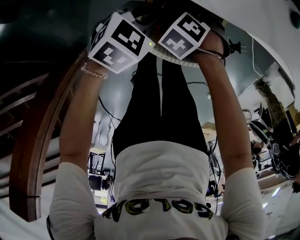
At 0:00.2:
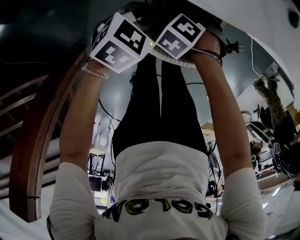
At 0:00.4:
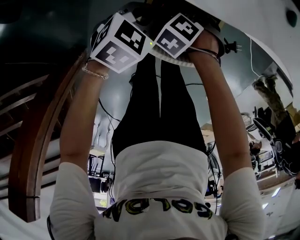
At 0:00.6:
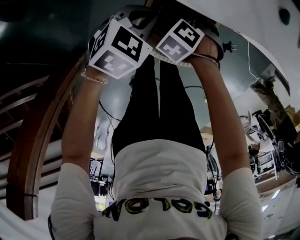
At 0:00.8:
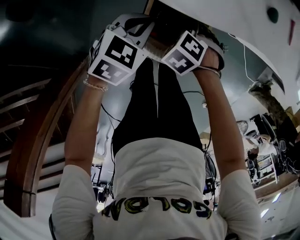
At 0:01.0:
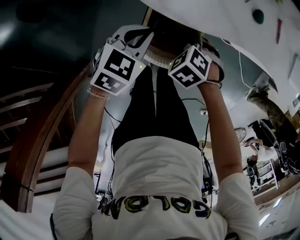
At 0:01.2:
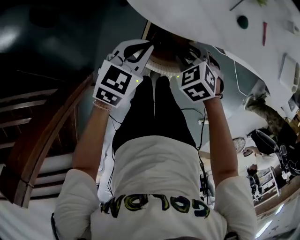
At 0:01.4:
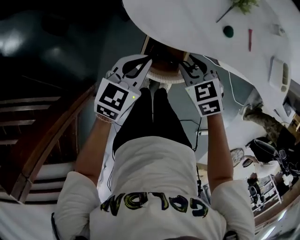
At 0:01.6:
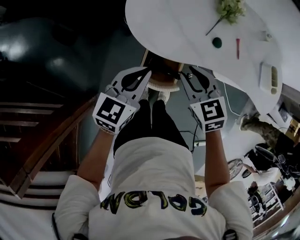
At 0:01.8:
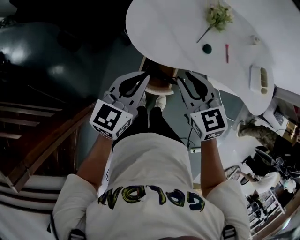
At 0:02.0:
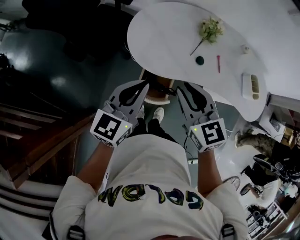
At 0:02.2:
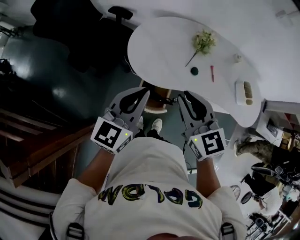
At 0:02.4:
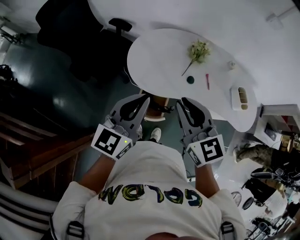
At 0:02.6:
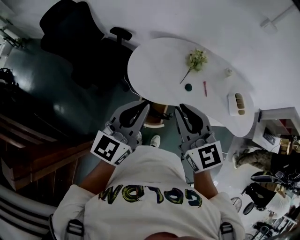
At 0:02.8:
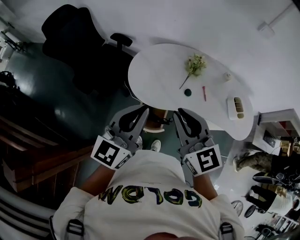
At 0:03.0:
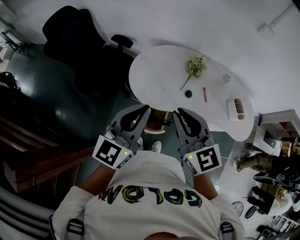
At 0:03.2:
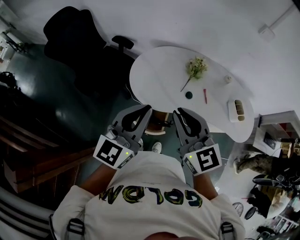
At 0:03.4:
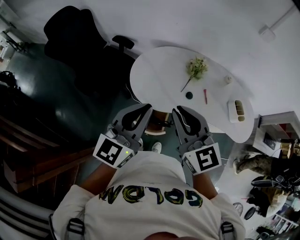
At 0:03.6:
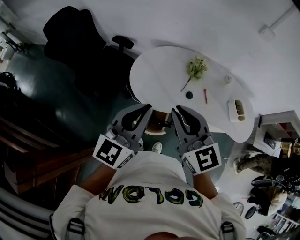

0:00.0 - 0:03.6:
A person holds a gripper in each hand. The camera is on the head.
0:00.0 - 0:01.8: Both grippers travel together upward, roughly 35 cm. The left gripper tilts its fingers approximately 30 degrees upward. The right gripper angles its fingers upward, by some 60 degrees, and closes its fingers.
0:01.8 - 0:03.6: The two grippers go roughly 20 cm upward. The right gripper changes its angle by approximately 20 degrees, while the left gripper turns by some 20 degrees.

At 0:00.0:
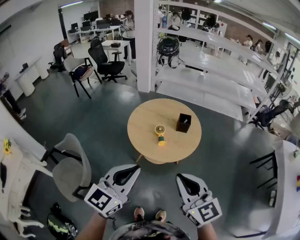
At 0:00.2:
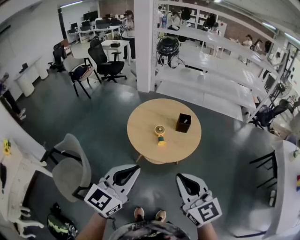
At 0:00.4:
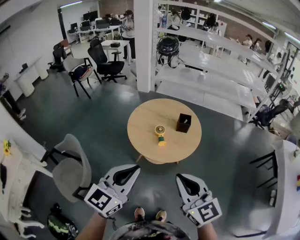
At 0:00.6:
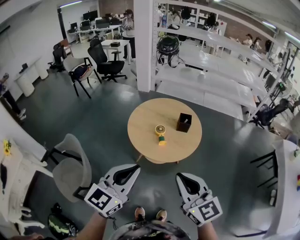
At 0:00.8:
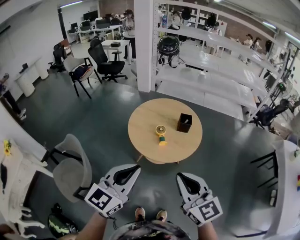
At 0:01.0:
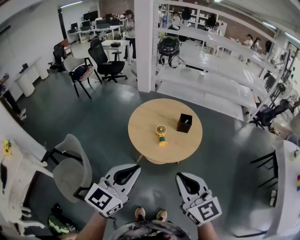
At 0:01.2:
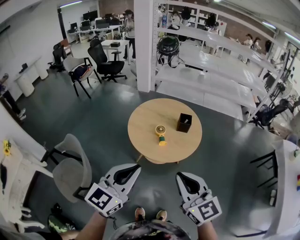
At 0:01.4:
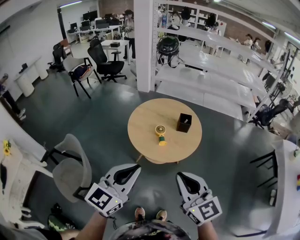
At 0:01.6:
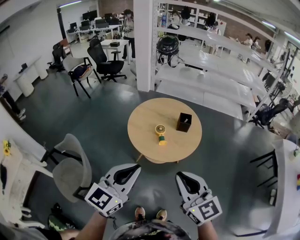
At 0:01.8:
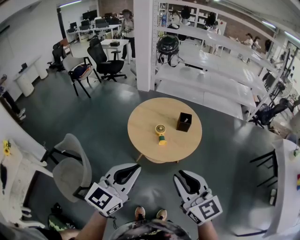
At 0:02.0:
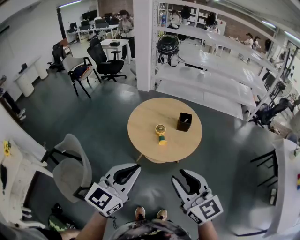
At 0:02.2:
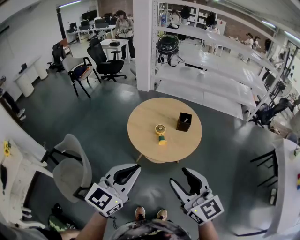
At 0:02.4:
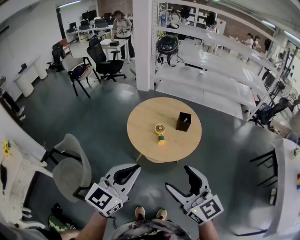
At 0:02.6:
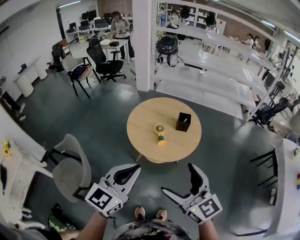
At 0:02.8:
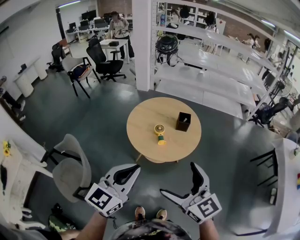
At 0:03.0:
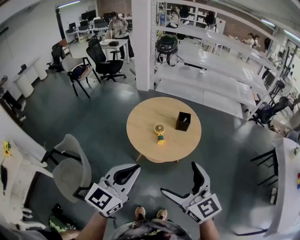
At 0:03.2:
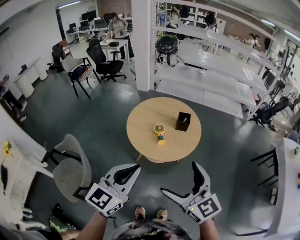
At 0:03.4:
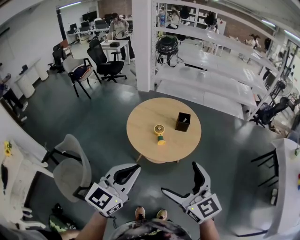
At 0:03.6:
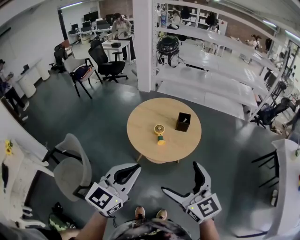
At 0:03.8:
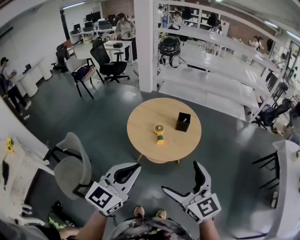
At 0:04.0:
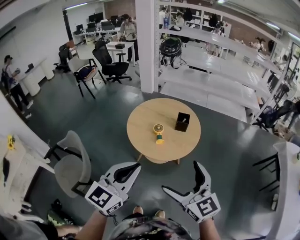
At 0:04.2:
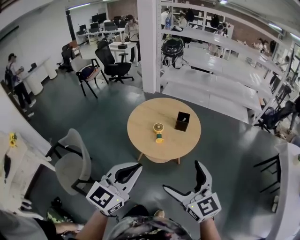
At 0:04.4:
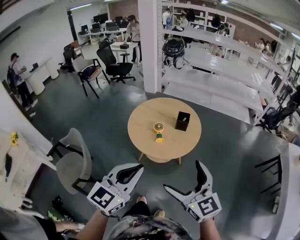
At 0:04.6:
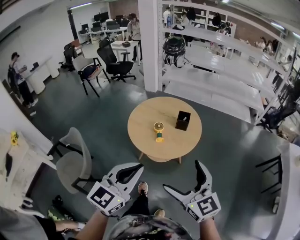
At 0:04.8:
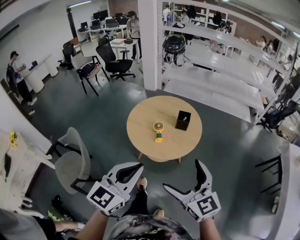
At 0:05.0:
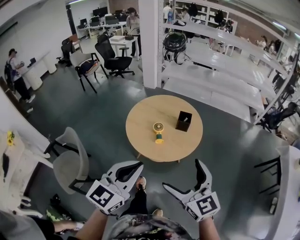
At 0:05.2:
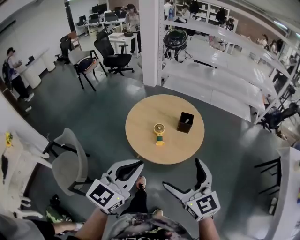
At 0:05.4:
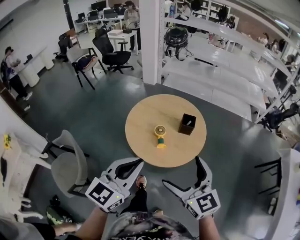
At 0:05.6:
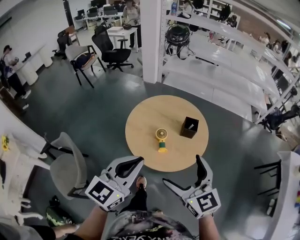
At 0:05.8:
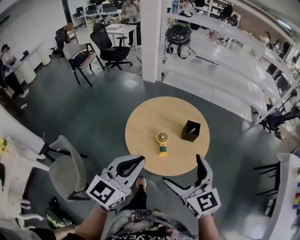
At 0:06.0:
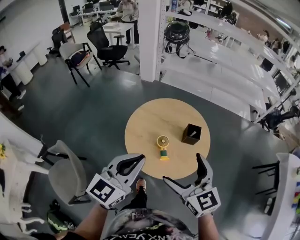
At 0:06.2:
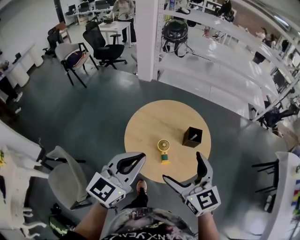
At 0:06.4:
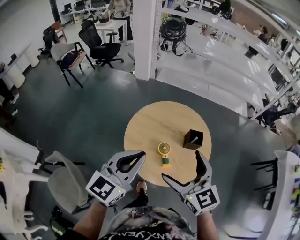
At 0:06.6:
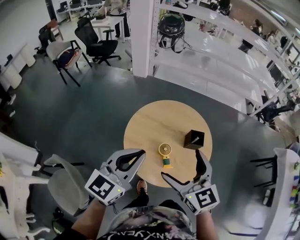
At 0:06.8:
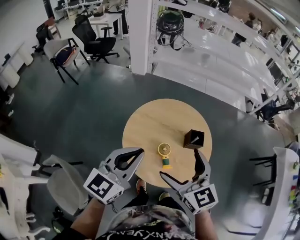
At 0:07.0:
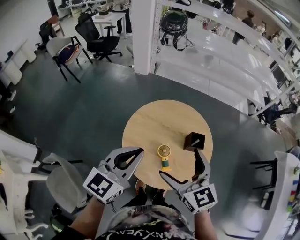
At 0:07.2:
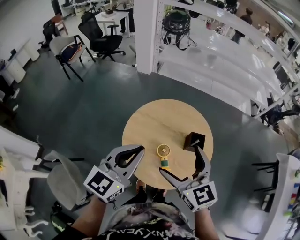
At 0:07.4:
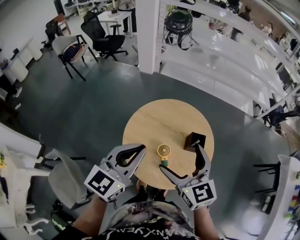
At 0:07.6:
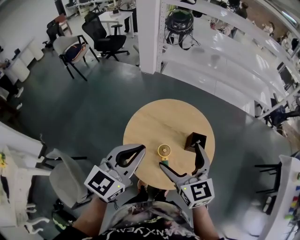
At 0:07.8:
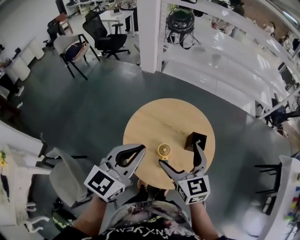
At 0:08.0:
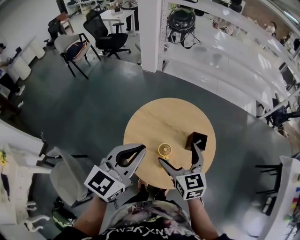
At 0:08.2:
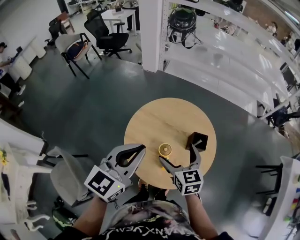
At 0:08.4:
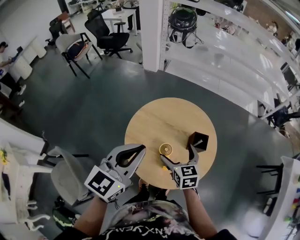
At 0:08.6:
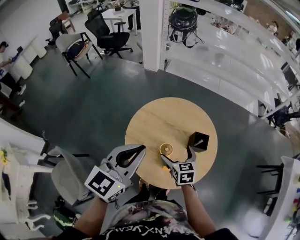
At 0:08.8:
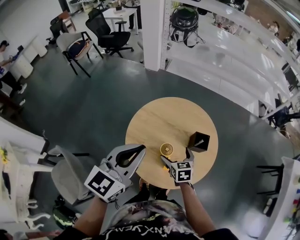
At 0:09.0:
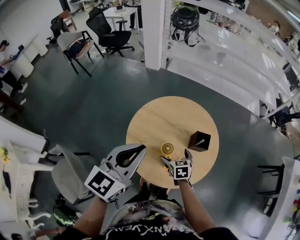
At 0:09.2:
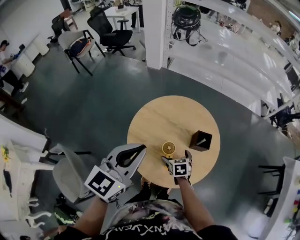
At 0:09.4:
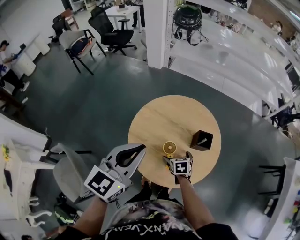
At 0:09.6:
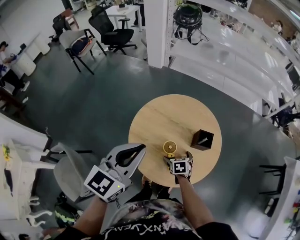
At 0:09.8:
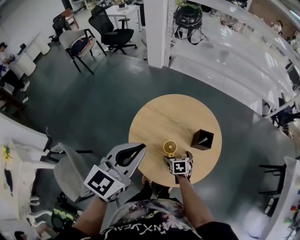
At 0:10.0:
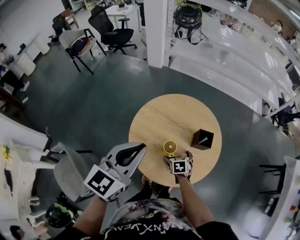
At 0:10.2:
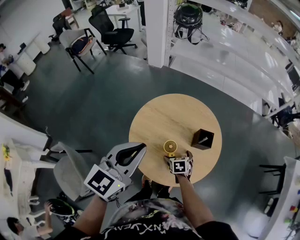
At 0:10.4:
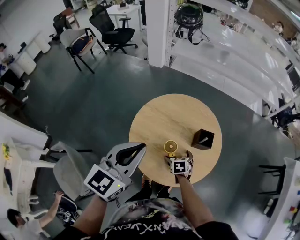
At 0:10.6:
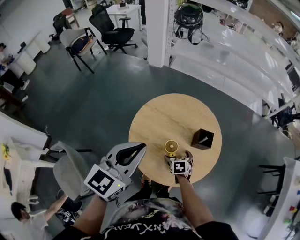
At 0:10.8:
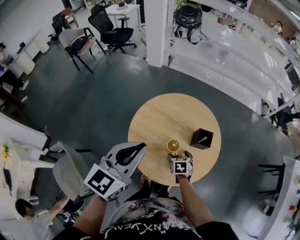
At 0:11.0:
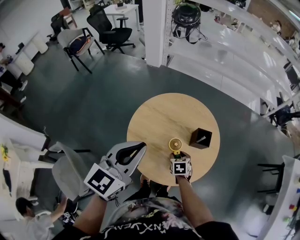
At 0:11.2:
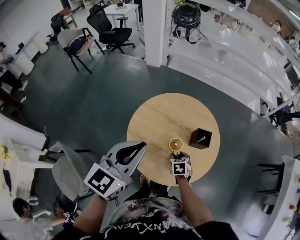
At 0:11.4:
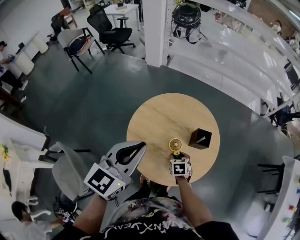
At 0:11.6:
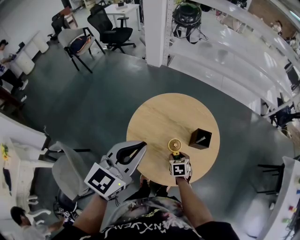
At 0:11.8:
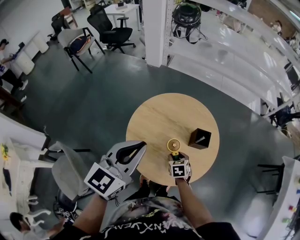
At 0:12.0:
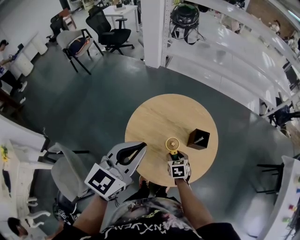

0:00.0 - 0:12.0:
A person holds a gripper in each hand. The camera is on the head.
0:00.0 - 0:01.6: Both grippers stay put.
0:01.6 - 0:03.0: The right gripper opens.
0:03.0 - 0:04.4: The grippers both shift to the right by about 10 cm.
0:04.4 - 0:06.0: Both grippers travel together forward, about 25 cm.
0:06.0 - 0:07.6: The grippers both shift forward by roughly 15 cm.
0:07.6 - 0:09.0: The right gripper heads downward, covering about 30 cm, and tips its fingers downward by some 30 degrees.
0:09.0 - 0:10.4: The right gripper moves downward, about 5 cm.
0:10.4 - 0:12.0: The right gripper closes its fingers.

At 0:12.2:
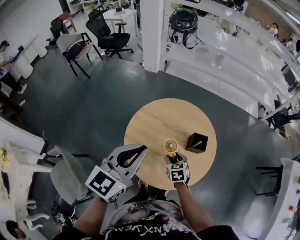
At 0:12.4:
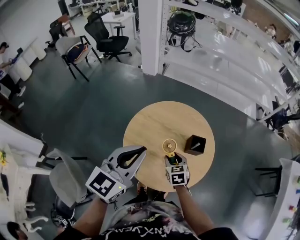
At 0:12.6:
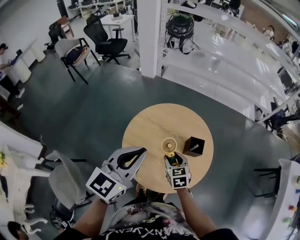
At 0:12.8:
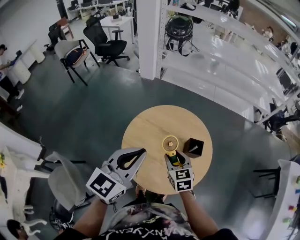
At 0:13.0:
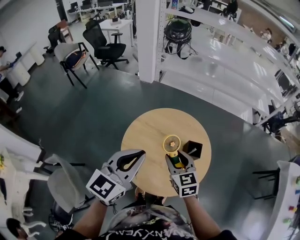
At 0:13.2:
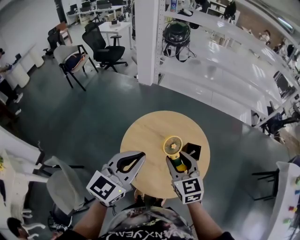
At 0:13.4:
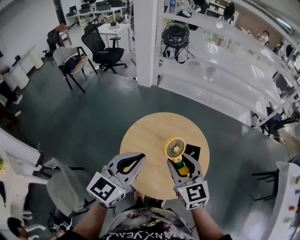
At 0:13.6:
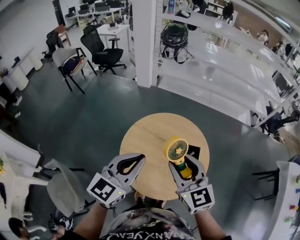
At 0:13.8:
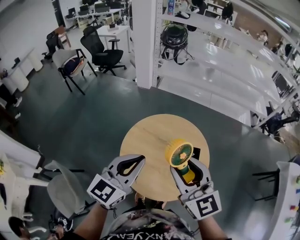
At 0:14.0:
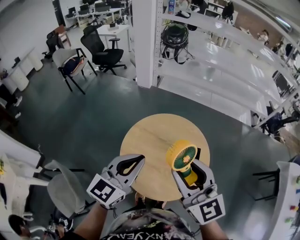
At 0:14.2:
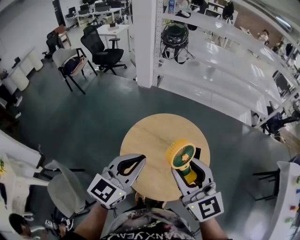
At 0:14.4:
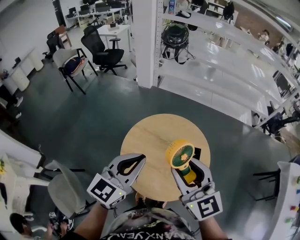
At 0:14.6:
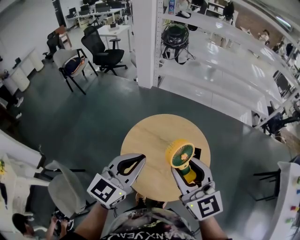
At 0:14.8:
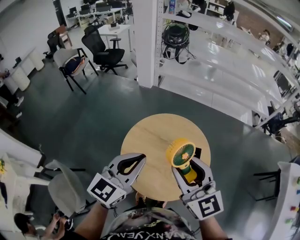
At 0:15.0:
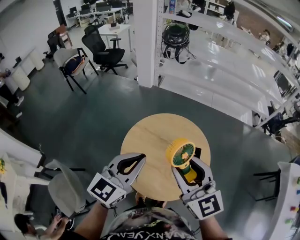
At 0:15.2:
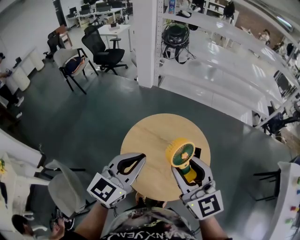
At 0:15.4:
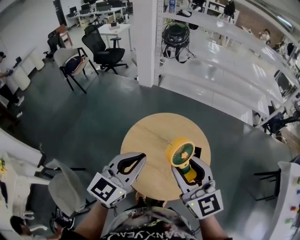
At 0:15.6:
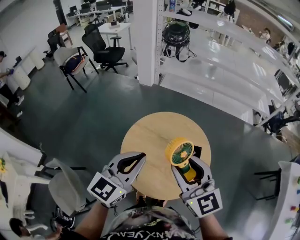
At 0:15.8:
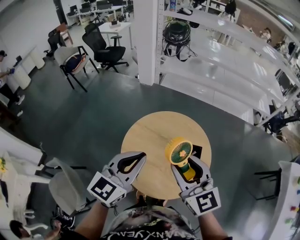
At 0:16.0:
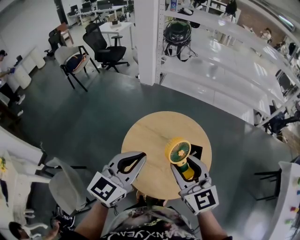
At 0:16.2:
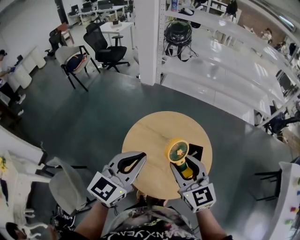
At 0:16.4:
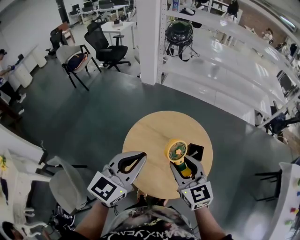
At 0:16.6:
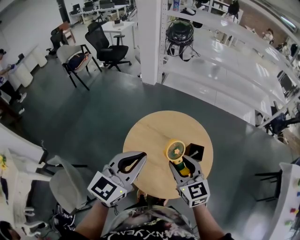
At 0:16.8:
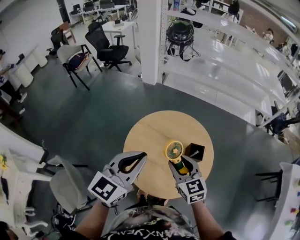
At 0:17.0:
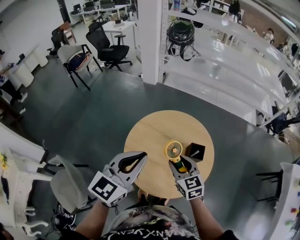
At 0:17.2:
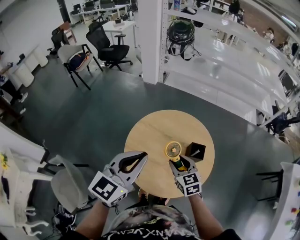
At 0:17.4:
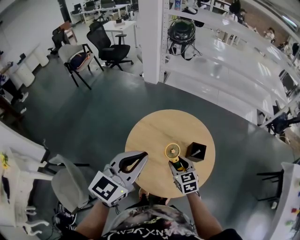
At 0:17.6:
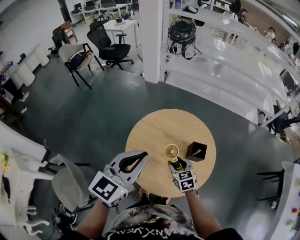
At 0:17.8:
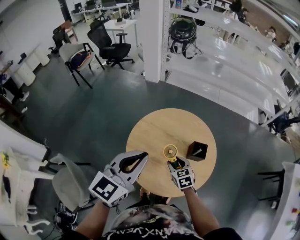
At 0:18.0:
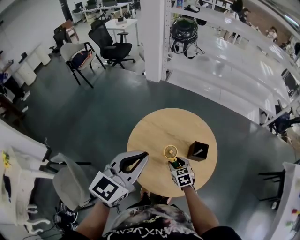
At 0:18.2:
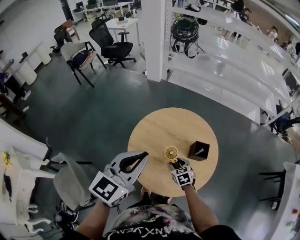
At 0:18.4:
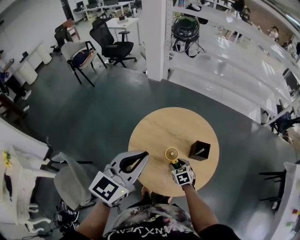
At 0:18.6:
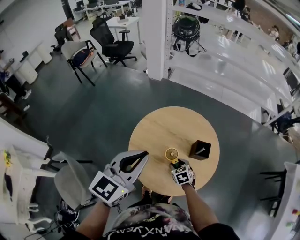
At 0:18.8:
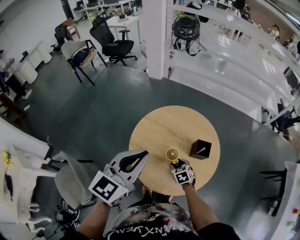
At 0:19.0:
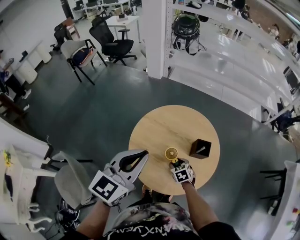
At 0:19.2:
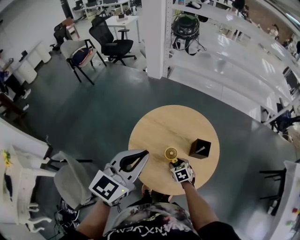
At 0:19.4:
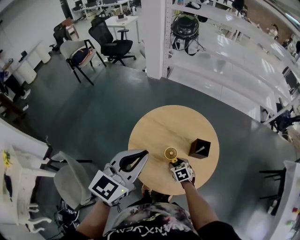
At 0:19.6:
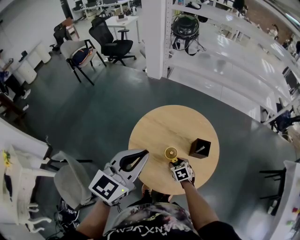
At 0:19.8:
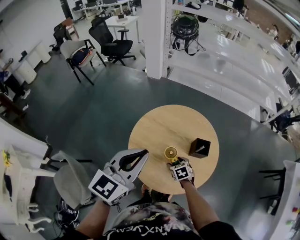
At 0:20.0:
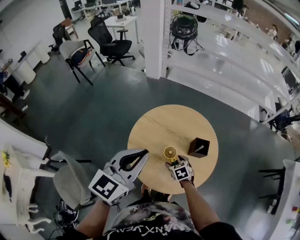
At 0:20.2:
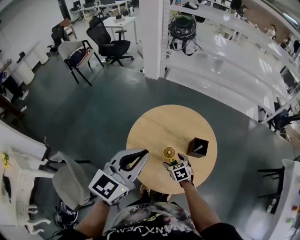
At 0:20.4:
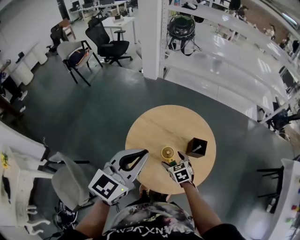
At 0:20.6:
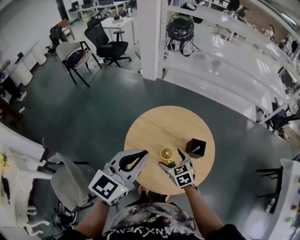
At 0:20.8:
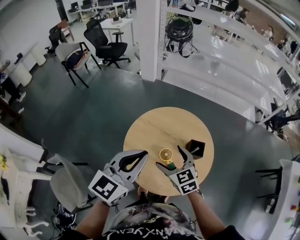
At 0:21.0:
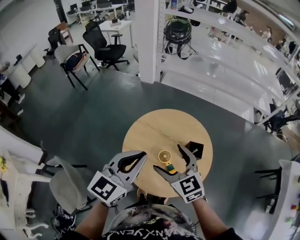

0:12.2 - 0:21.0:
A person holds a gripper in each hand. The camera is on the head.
0:12.2 - 0:13.6: The right gripper goes about 30 cm upward, and angles its fingers upward, by roughly 40 degrees.
0:15.2 - 0:16.6: The right gripper goes some 10 cm downward.
0:16.6 - 0:18.0: The right gripper goes about 25 cm downward, and changes its angle by some 30 degrees.
0:18.0 - 0:19.6: The right gripper moves downward, some 5 cm.
0:19.6 - 0:21.0: The right gripper shifts approximately 30 cm upward, angles its fingers upward, by some 40 degrees, and opens up.
